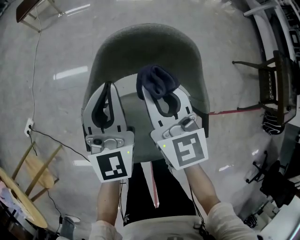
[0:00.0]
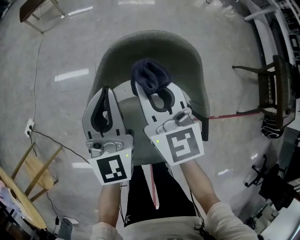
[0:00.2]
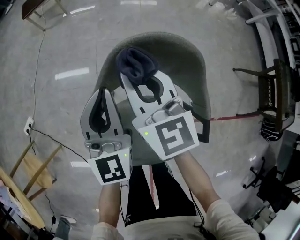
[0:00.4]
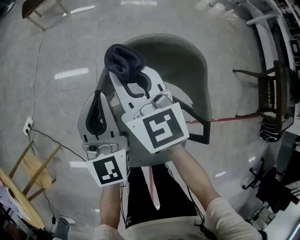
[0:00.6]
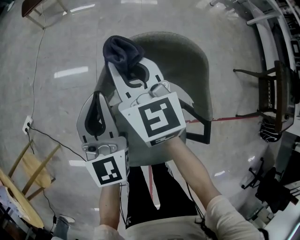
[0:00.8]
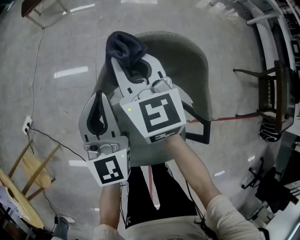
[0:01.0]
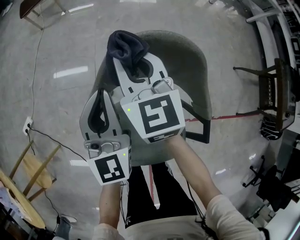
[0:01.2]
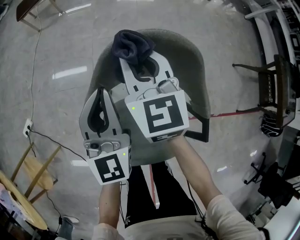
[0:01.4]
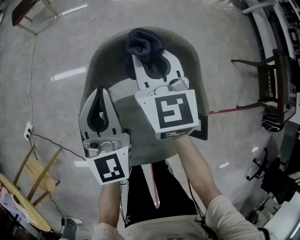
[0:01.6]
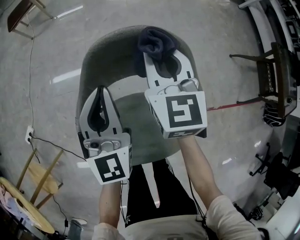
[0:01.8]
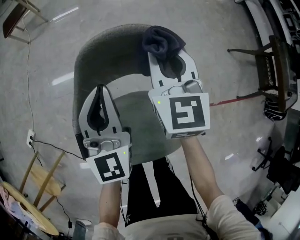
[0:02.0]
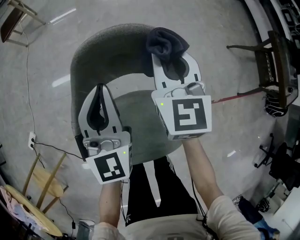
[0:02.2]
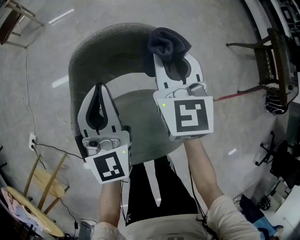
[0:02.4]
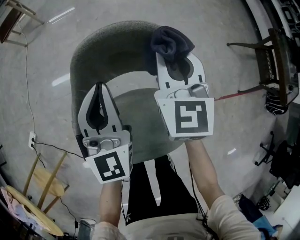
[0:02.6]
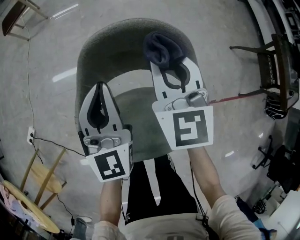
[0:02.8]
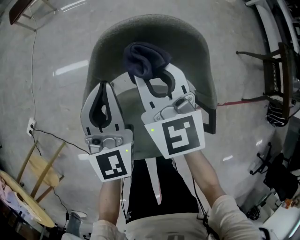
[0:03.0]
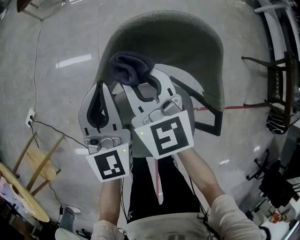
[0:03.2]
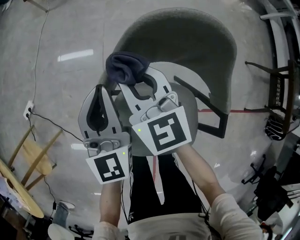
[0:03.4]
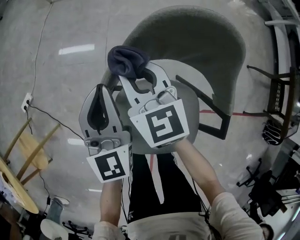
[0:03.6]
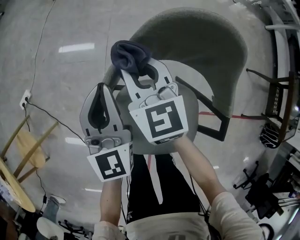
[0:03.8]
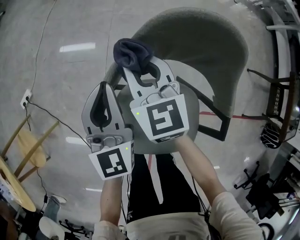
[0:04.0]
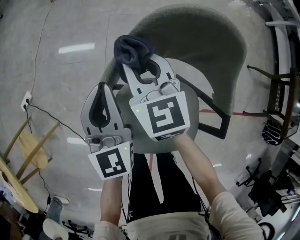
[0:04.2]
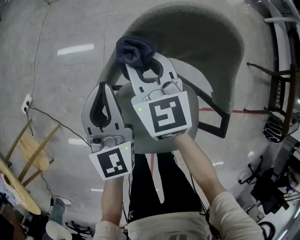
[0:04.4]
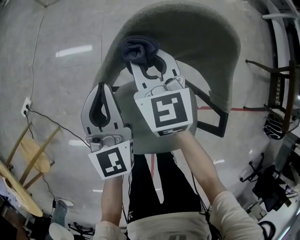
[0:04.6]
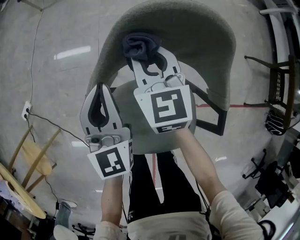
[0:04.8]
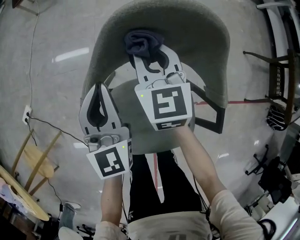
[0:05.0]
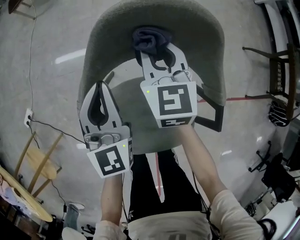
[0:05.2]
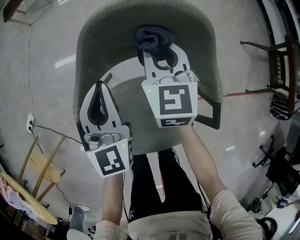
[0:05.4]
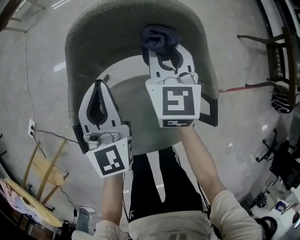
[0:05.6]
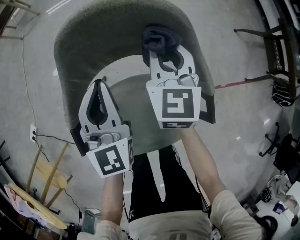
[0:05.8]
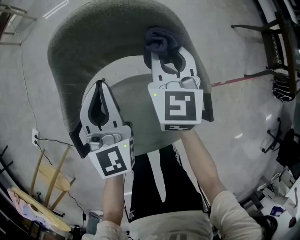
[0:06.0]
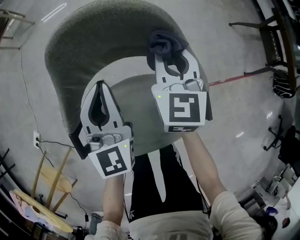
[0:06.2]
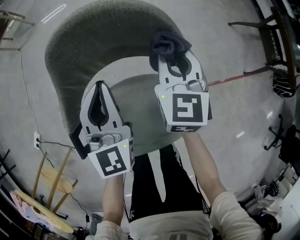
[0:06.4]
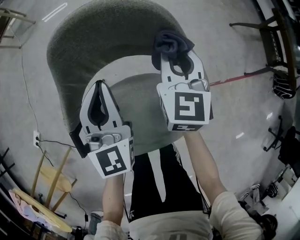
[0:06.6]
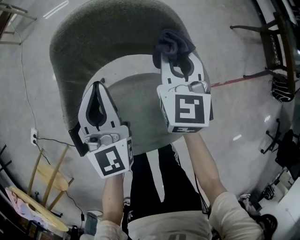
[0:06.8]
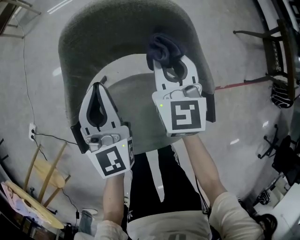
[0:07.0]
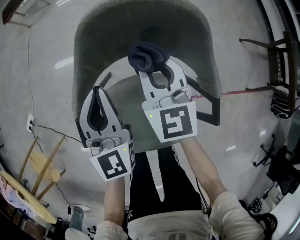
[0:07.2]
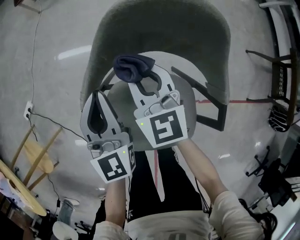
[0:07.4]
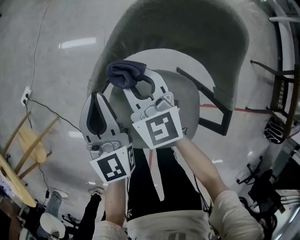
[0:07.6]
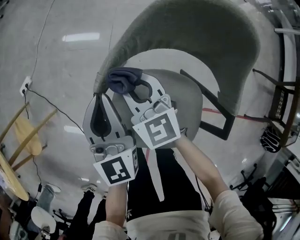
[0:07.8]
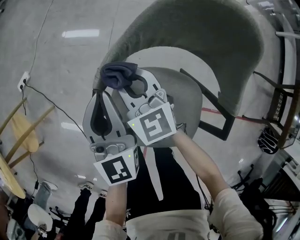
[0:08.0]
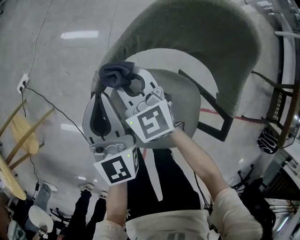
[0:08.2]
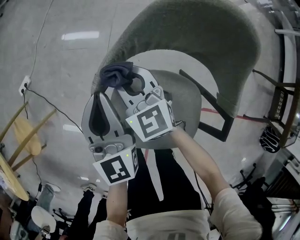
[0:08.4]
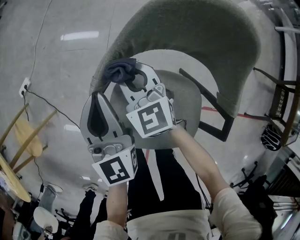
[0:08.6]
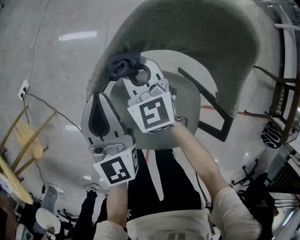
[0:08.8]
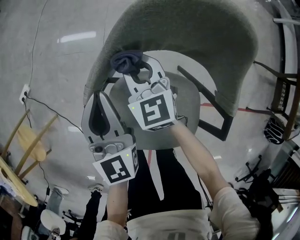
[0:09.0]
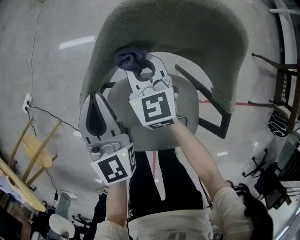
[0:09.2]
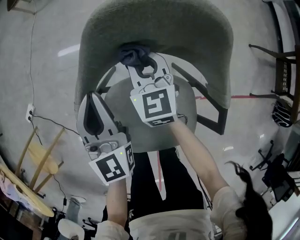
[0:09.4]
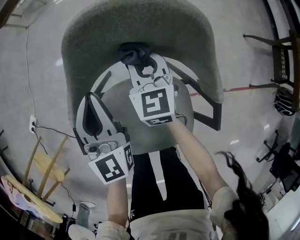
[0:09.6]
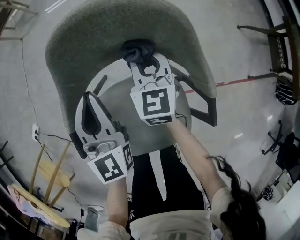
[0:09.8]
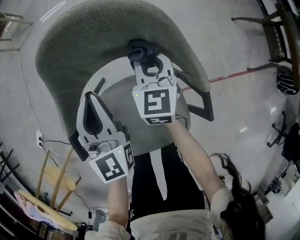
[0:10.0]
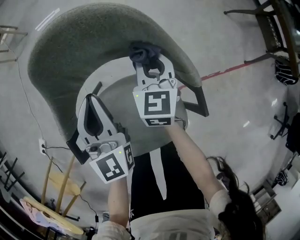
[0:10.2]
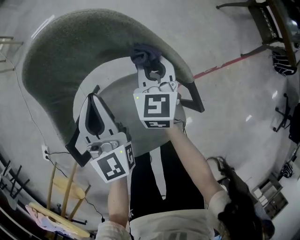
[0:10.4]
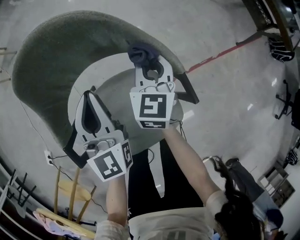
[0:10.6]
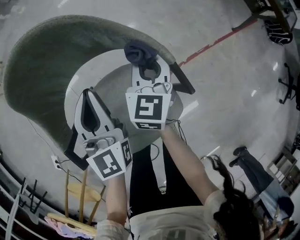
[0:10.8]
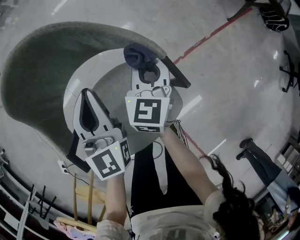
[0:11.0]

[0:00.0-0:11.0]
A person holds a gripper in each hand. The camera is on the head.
0.0 to 1.6 s: The right gripper is displaced forward by about 10 cm.
1.6 to 3.2 s: The right gripper goes roughly 10 cm to the left and backward, while the left gripper moves some 5 cm.
3.2 to 4.8 s: The right gripper heads downward, covering approximately 5 cm, and reaches approximately 5 cm to the left, then returns, while the left gripper shifts by about 5 cm.
4.8 to 6.2 s: The right gripper is displaced to the right by some 20 cm, and turns by some 30 degrees; the left gripper is displaced to the right by some 15 cm.
6.2 to 7.8 s: The right gripper changes place by roughly 30 cm, and rotates about 50 degrees. The left gripper changes place by roughly 20 cm, and changes its angle by approximately 30 degrees.
7.8 to 9.4 s: The left gripper moves to the right, about 10 cm; the right gripper travels to the right by roughly 15 cm, and changes its angle by some 30 degrees.
9.4 to 11.0 s: The left gripper shifts by approximately 20 cm, and turns by approximately 40 degrees. Meanwhile the right gripper ends up about 30 cm from where it was, and changes its angle by some 60 degrees.

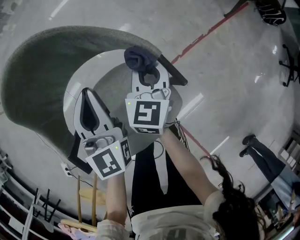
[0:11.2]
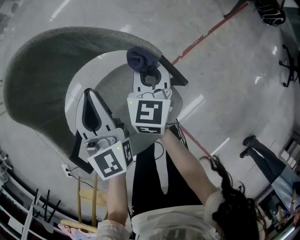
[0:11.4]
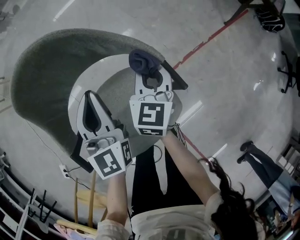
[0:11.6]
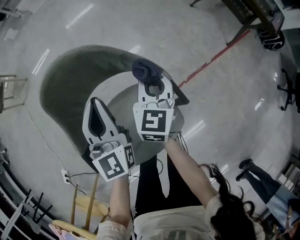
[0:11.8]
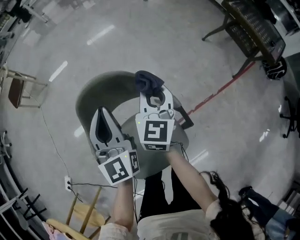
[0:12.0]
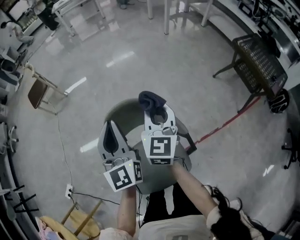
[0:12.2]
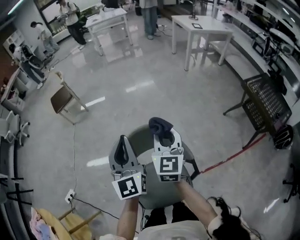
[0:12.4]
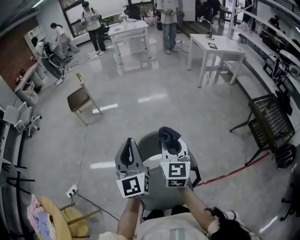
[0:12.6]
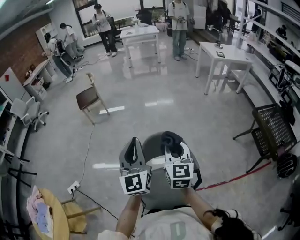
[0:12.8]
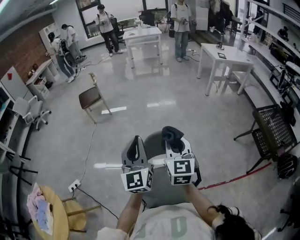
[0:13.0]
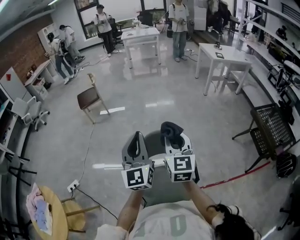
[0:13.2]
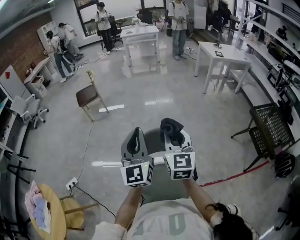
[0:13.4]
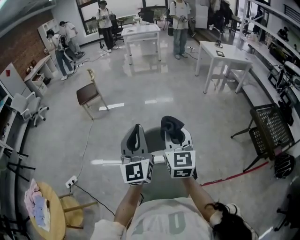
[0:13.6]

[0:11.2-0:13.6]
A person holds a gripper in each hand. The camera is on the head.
11.2 to 12.4 s: Both grippers travel together upward, approximately 40 cm. The left gripper changes its angle by some 30 degrees, while the right gripper changes its angle by about 40 degrees.
12.4 to 13.6 s: The grippers both shift upward and backward by some 15 cm.

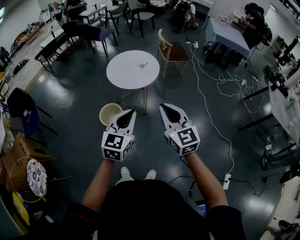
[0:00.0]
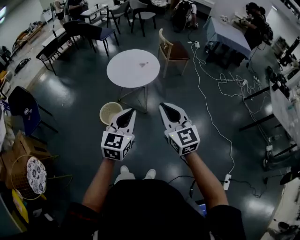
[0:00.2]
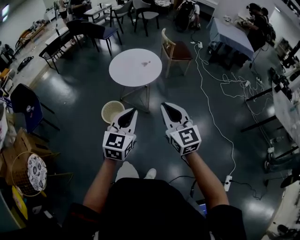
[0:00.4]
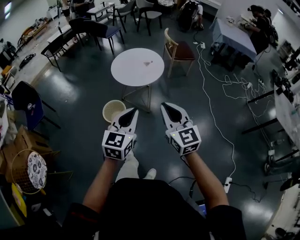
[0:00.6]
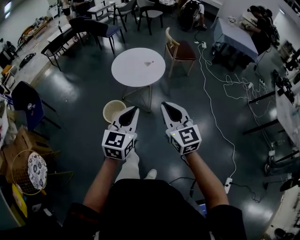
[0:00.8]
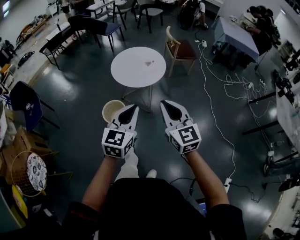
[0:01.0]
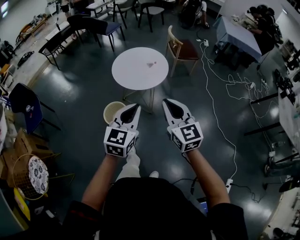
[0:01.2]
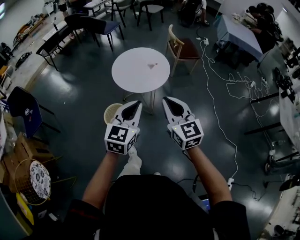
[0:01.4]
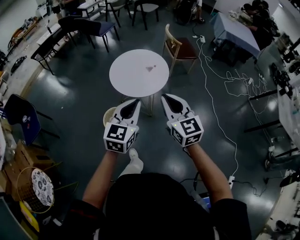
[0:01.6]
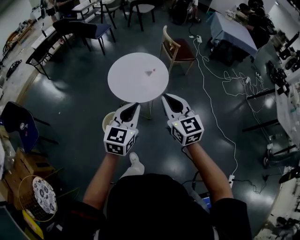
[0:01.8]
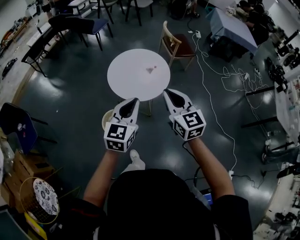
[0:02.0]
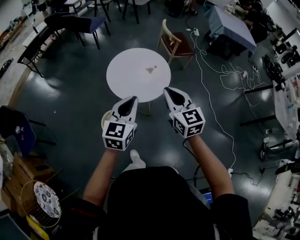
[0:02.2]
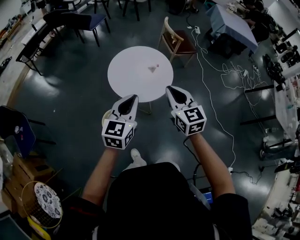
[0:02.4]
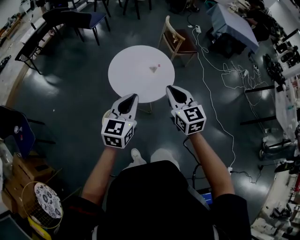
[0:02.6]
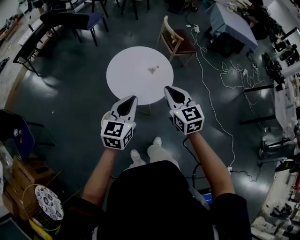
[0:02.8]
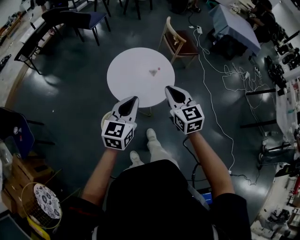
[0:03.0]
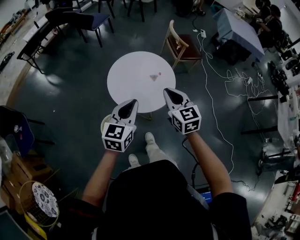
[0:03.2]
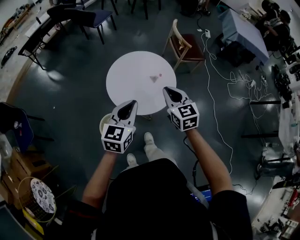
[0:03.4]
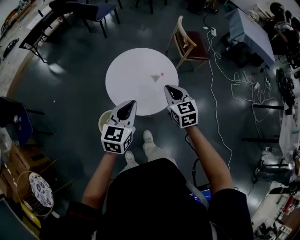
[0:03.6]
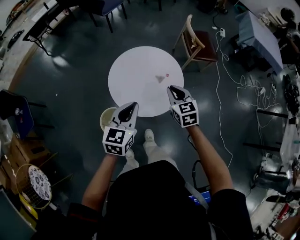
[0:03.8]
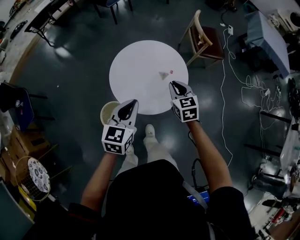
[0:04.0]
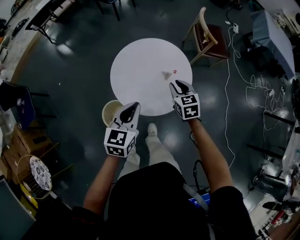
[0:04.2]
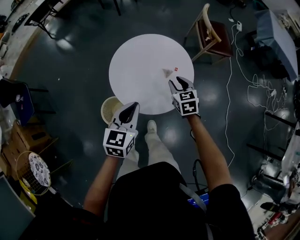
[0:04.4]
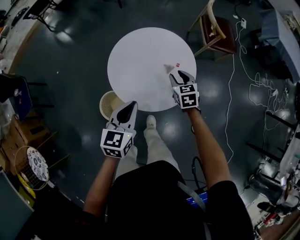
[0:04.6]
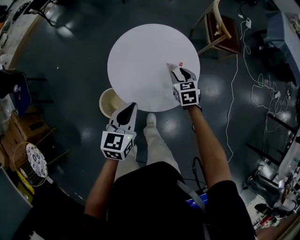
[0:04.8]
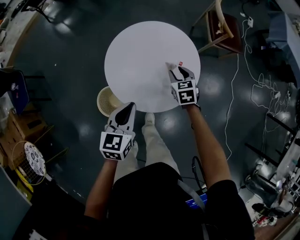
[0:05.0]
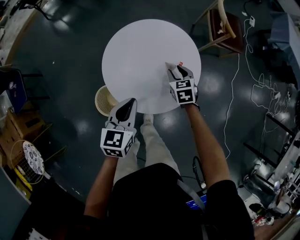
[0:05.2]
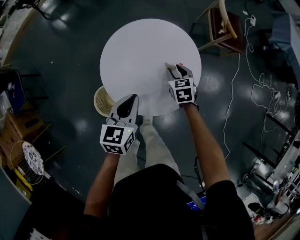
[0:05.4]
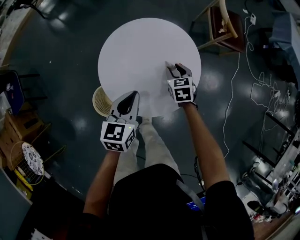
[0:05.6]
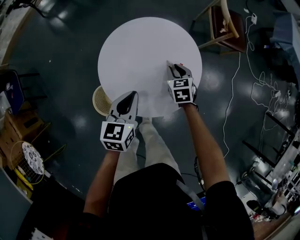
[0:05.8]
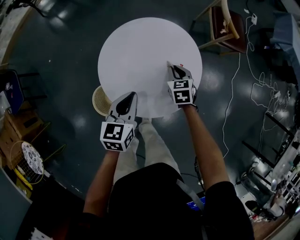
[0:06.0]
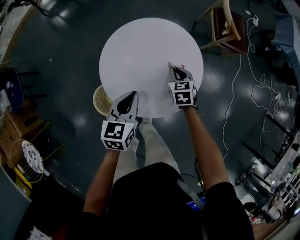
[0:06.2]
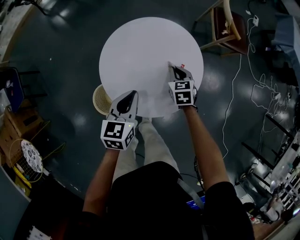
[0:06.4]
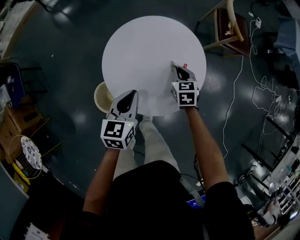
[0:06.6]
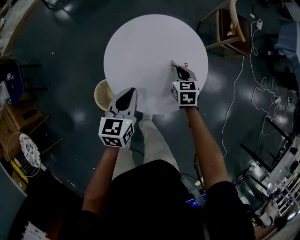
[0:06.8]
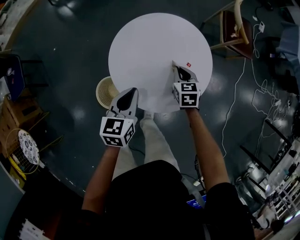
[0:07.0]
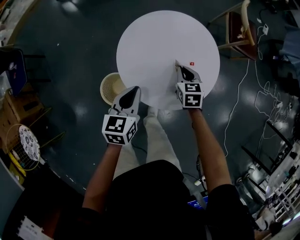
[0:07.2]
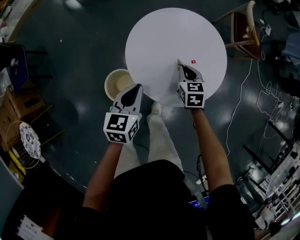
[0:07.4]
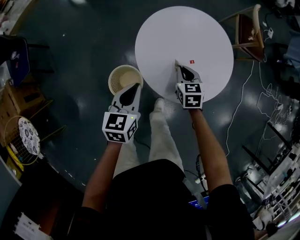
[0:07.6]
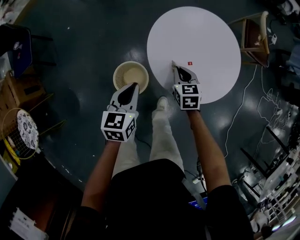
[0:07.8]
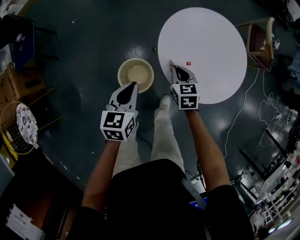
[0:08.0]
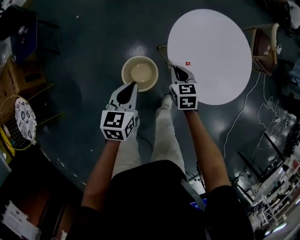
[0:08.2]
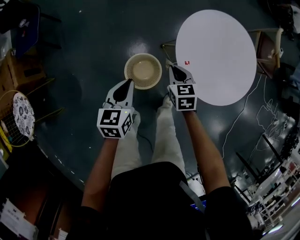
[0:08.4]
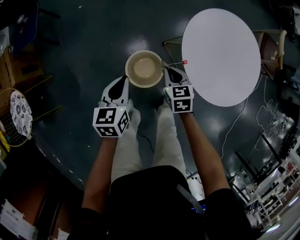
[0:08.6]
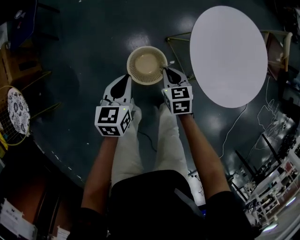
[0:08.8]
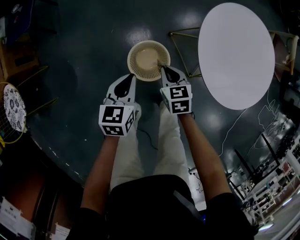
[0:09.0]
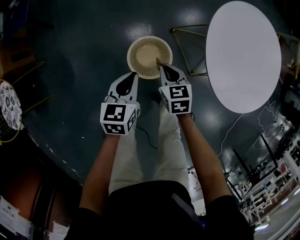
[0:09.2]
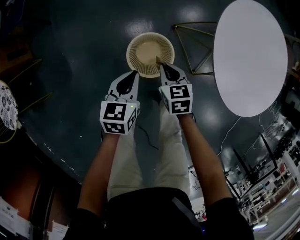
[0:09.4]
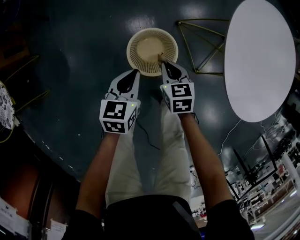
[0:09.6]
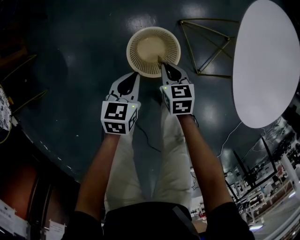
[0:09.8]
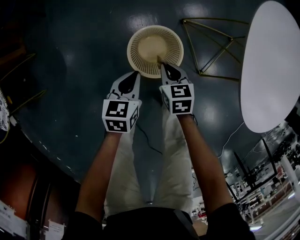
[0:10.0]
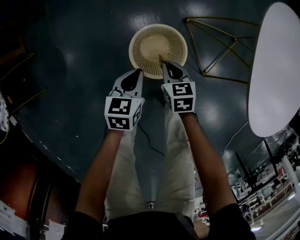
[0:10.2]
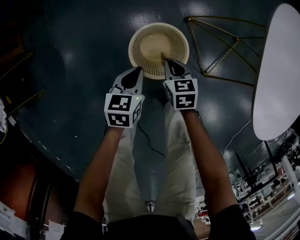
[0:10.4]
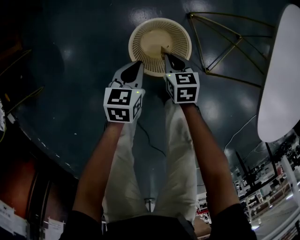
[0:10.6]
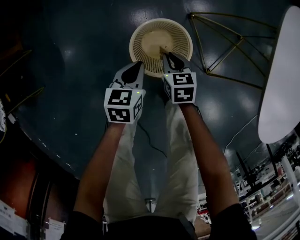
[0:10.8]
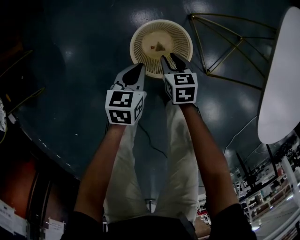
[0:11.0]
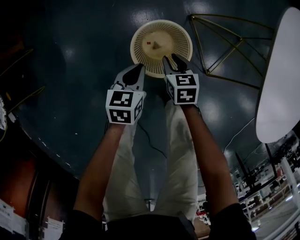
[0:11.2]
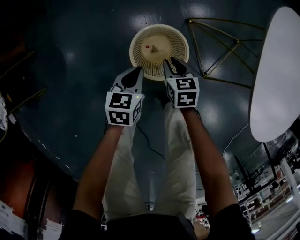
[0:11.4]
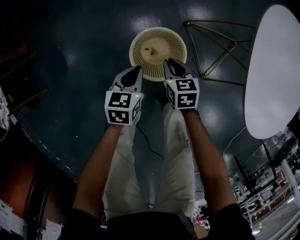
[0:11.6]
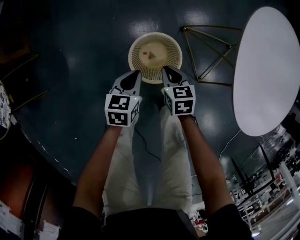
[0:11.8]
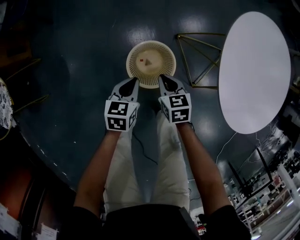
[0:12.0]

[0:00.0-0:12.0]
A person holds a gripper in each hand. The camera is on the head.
0.0 to 1.6 s: Both grippers move forward, roughly 20 cm.
1.6 to 3.0 s: The left gripper is displaced forward and to the left by approximately 25 cm. The right gripper heads forward, covering about 25 cm.
3.0 to 4.4 s: The left gripper is displaced downward and forward by some 20 cm, and swivels approximately 20 degrees. Meanwhile the right gripper is displaced downward and forward by roughly 35 cm, changes its angle by roughly 20 degrees, and opens.
4.4 to 6.0 s: Both grippers move downward and forward, roughly 20 cm.
6.0 to 7.6 s: Both grippers travel together to the left and backward, roughly 20 cm.
7.6 to 9.0 s: The left gripper heads to the left and downward, covering roughly 30 cm. The right gripper is displaced to the left by some 35 cm.
9.0 to 10.4 s: Both grippers move downward, some 25 cm.
10.4 to 12.0 s: The two grippers go about 10 cm upward. The right gripper opens, then closes once more.
